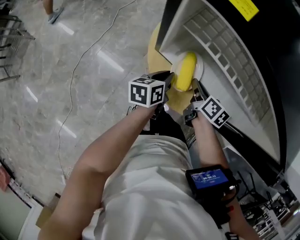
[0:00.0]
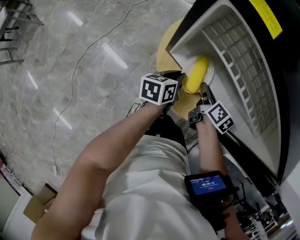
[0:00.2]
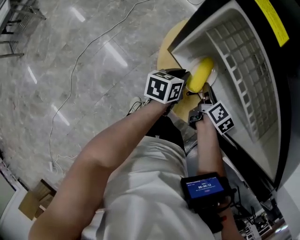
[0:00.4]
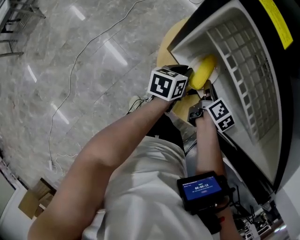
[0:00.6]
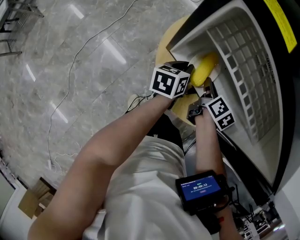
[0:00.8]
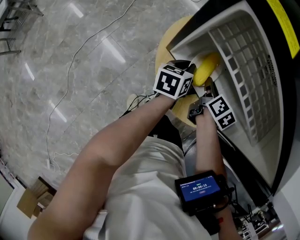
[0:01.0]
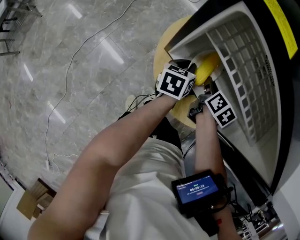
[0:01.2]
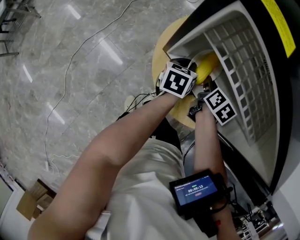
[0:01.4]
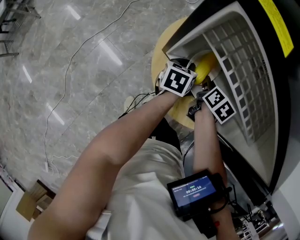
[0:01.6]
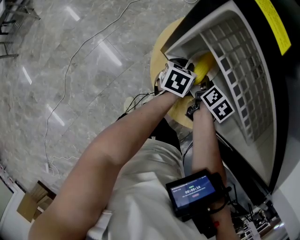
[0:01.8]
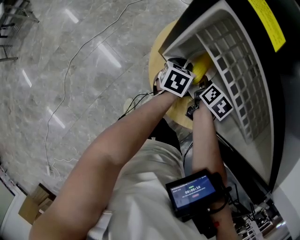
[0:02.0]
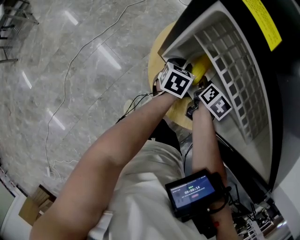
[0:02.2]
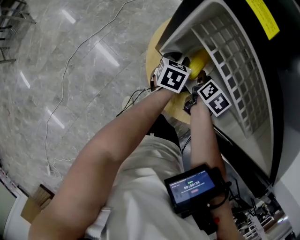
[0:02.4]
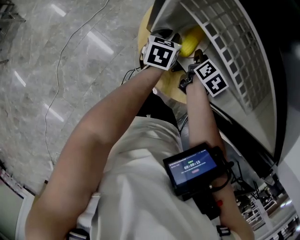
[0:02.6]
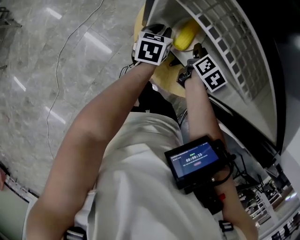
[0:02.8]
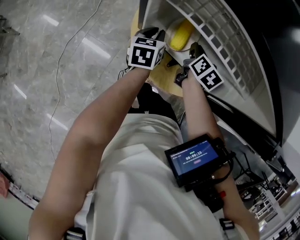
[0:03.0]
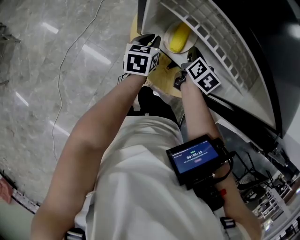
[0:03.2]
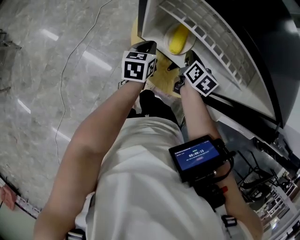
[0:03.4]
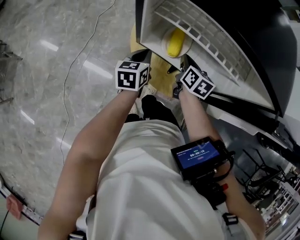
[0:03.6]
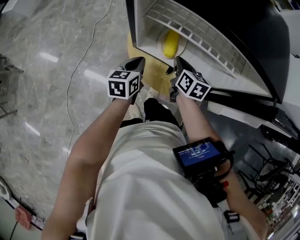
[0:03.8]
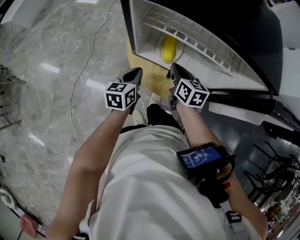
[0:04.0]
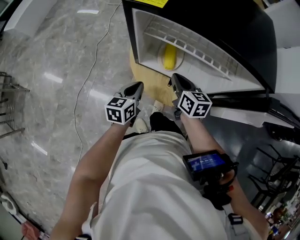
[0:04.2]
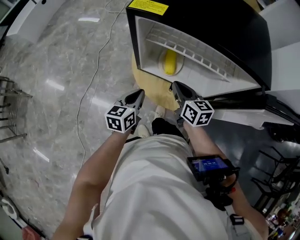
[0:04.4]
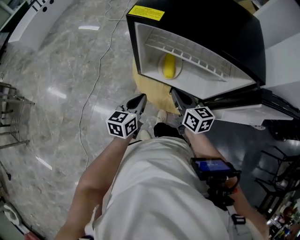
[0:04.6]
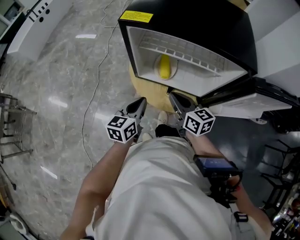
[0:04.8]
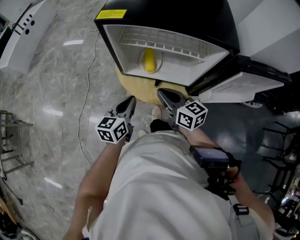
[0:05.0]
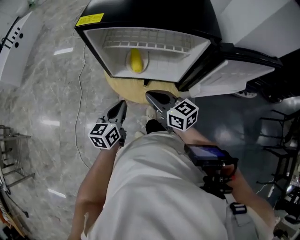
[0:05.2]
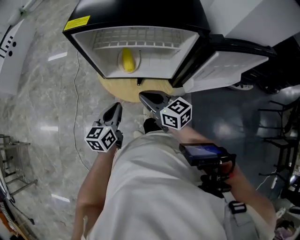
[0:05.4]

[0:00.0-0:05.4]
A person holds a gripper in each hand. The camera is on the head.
0.0 to 1.4 s: The two grippers go about 10 cm forward.
1.4 to 2.8 s: The grippers move only a little.
2.8 to 4.0 s: The left gripper heads backward and upward, covering about 15 cm; the right gripper shifts about 15 cm backward, upward and to the left, and closes its fingers.
4.0 to 5.4 s: The grippers both shift backward and upward by some 15 cm. The right gripper turns by roughly 20 degrees.

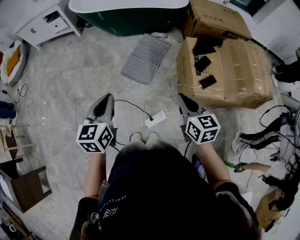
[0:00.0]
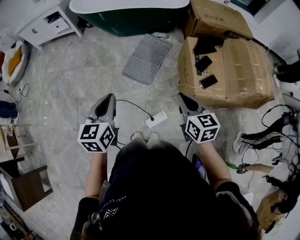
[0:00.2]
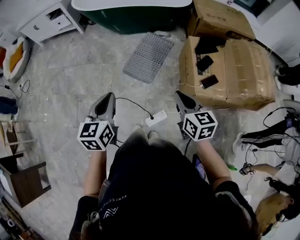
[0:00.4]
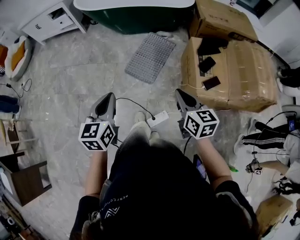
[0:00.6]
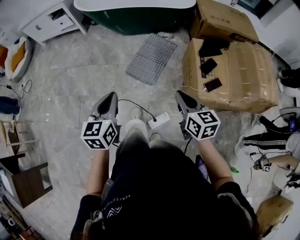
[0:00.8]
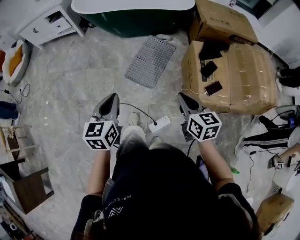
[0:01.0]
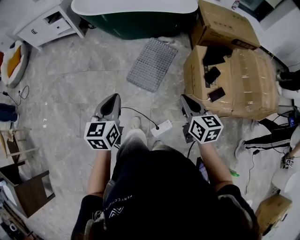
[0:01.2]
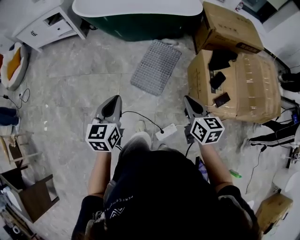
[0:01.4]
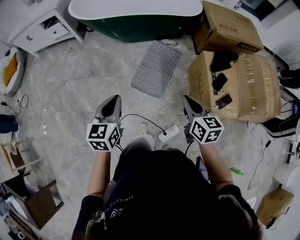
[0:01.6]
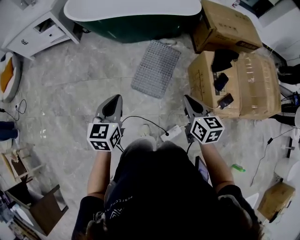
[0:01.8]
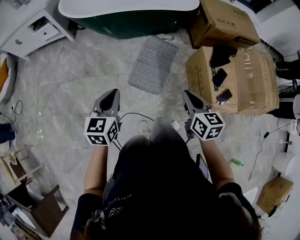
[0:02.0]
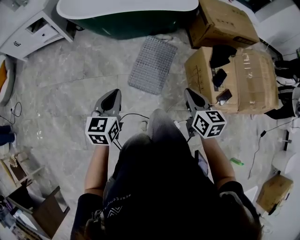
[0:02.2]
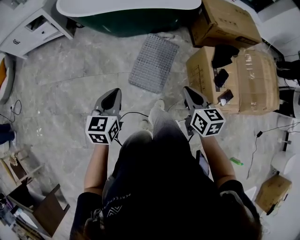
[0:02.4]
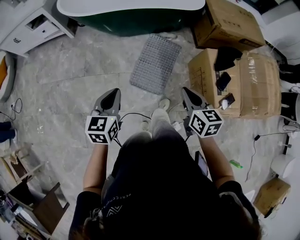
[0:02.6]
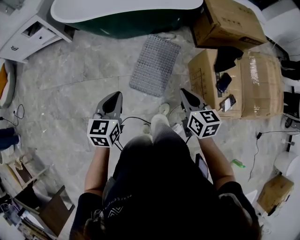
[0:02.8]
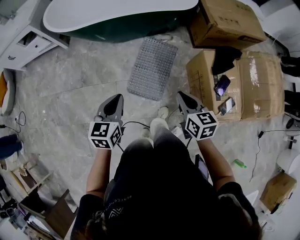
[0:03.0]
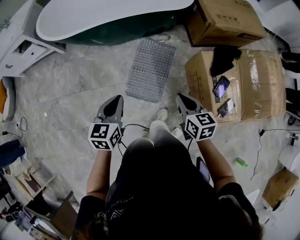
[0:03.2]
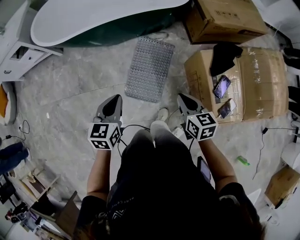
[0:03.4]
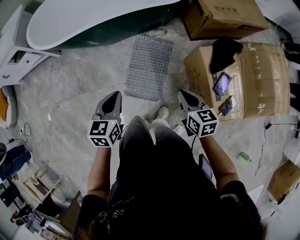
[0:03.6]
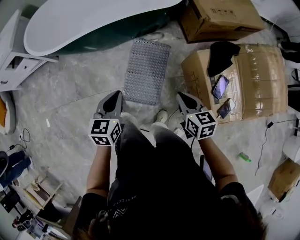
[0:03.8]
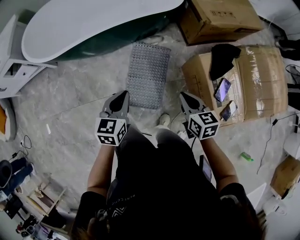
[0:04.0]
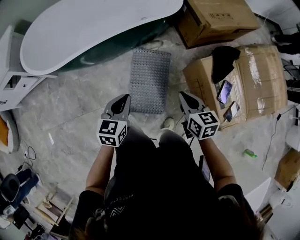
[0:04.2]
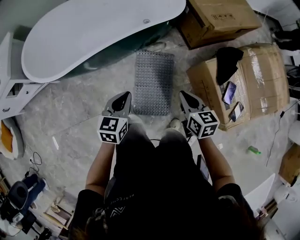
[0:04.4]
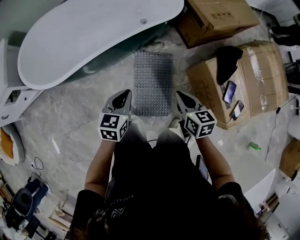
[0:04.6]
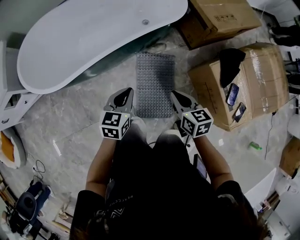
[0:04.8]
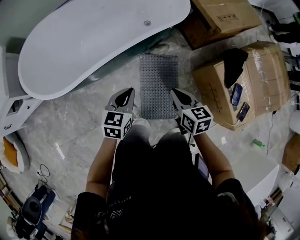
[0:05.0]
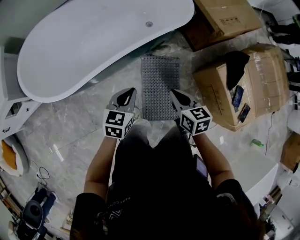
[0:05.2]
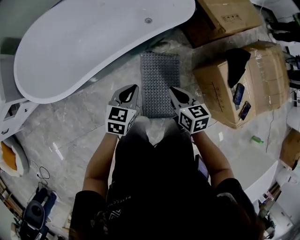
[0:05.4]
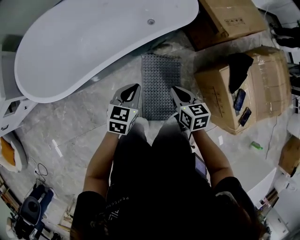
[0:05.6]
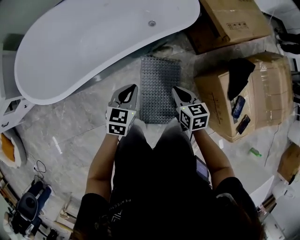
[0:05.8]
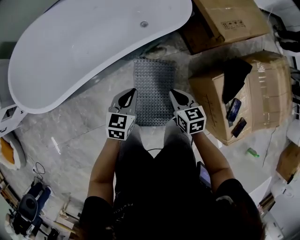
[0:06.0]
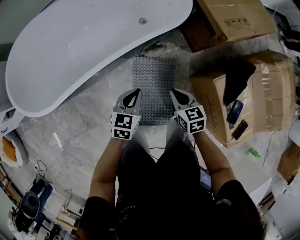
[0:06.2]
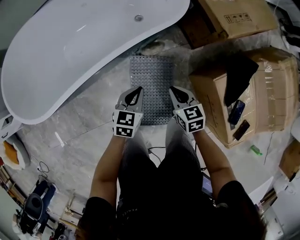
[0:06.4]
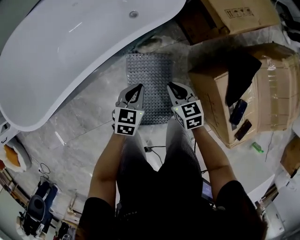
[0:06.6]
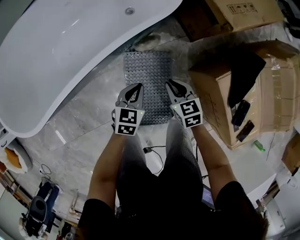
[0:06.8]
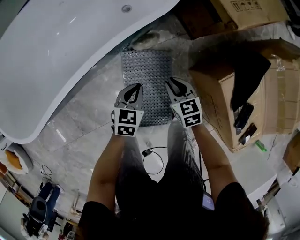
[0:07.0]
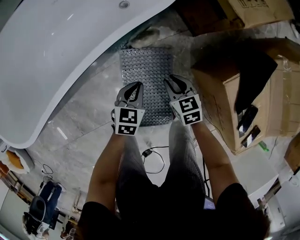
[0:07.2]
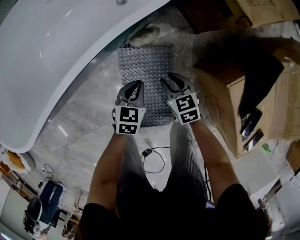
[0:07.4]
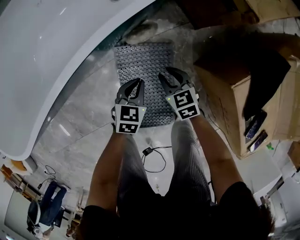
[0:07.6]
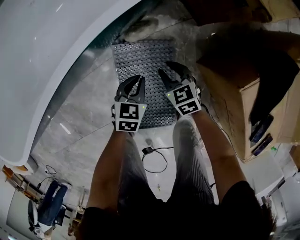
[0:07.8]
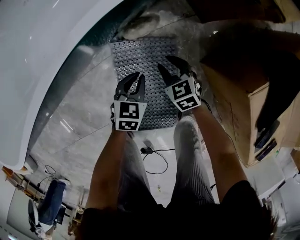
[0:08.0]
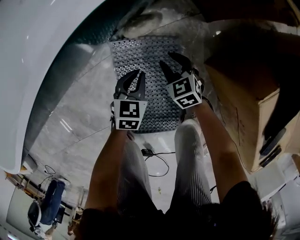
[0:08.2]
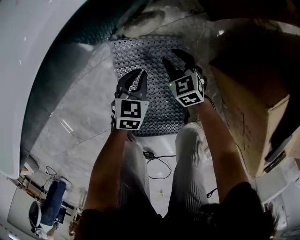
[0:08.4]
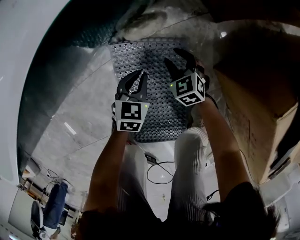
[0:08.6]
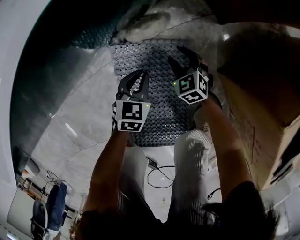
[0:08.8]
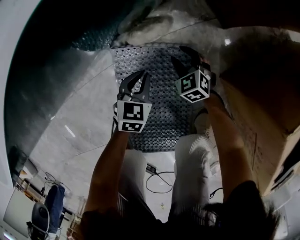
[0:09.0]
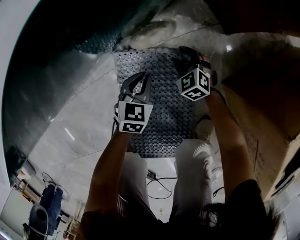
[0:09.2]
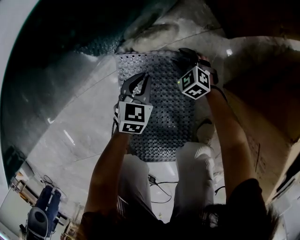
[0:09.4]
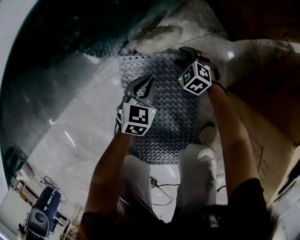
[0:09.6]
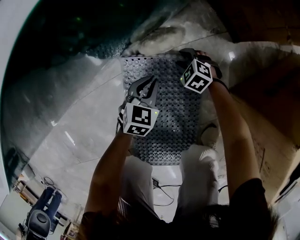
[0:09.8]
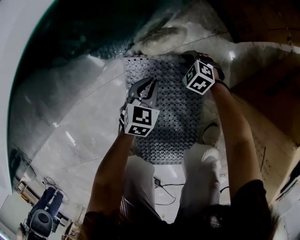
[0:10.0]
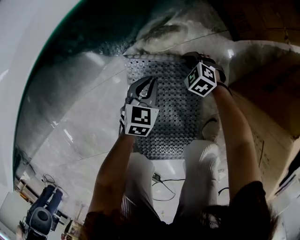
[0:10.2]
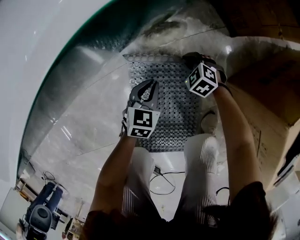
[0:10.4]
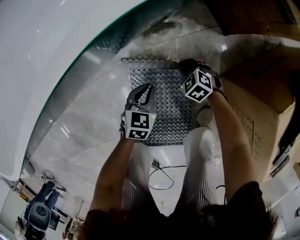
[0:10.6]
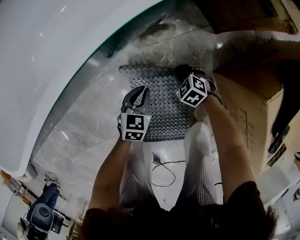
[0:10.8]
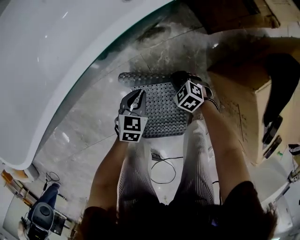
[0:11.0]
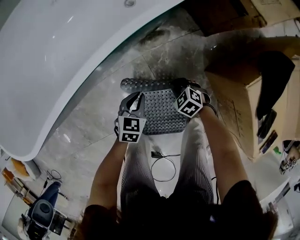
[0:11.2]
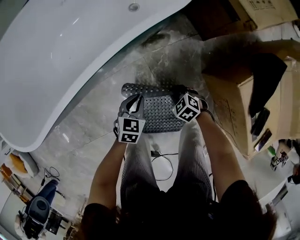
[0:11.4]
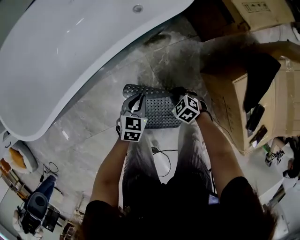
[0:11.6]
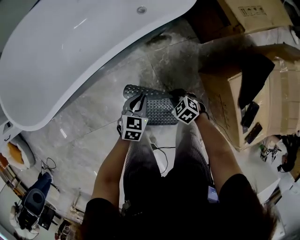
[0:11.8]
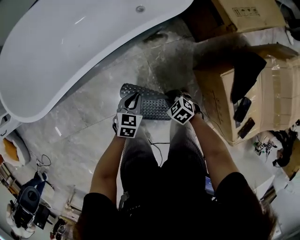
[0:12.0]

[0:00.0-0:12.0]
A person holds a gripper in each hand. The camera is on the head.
0.0 to 1.6 s: The grippers both shift forward and to the left by roughly 20 cm.
1.6 to 3.0 s: The grippers both shift forward by roughly 15 cm.
3.0 to 4.4 s: Both grippers travel together forward, roughly 20 cm. The left gripper swivels roughly 20 degrees.
4.4 to 6.0 s: The two grippers go roughly 20 cm forward and downward. The right gripper reaches roughly 15 cm to the left, then returns.
6.0 to 7.6 s: The left gripper shifts roughly 30 cm downward and to the right. The right gripper goes approximately 30 cm downward and forward, and opens up.
7.6 to 9.0 s: Both grippers move downward, about 25 cm. The right gripper turns by some 30 degrees.
9.0 to 10.4 s: The right gripper swivels roughly 20 degrees, and closes up.
10.4 to 12.0 s: Both grippers travel together upward and backward, some 35 cm.

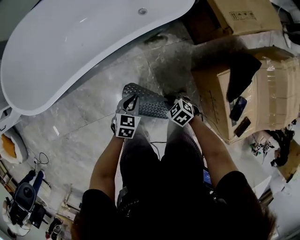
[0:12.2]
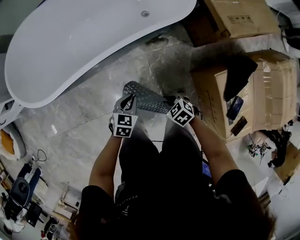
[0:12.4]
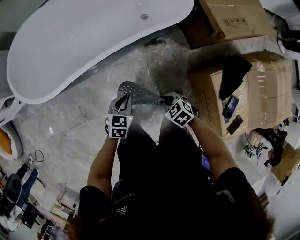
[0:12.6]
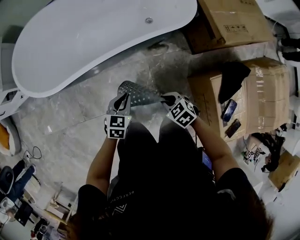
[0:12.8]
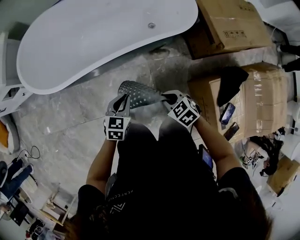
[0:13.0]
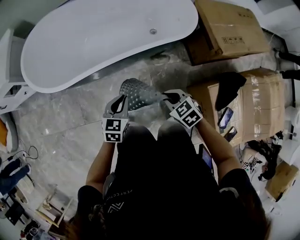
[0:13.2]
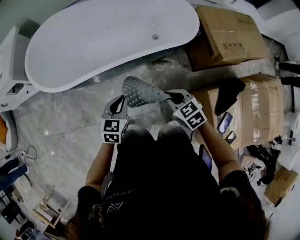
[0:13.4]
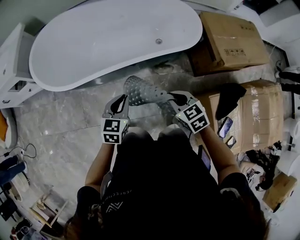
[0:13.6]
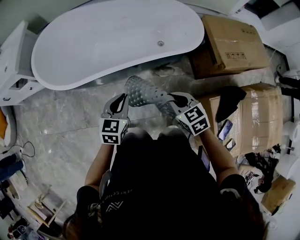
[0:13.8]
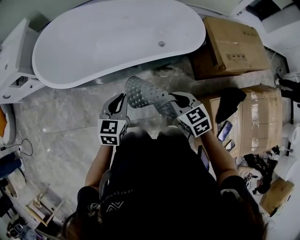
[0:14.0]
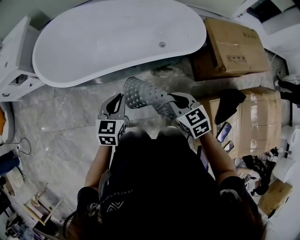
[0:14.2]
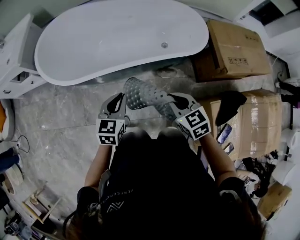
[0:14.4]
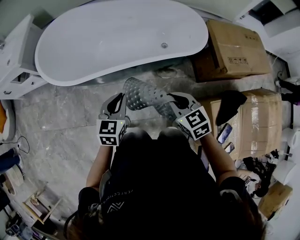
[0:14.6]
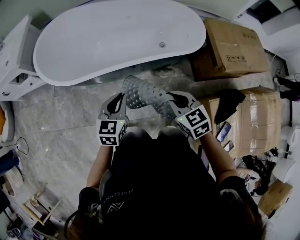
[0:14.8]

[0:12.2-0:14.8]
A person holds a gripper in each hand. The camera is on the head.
12.2 to 13.4 s: The left gripper goes roughly 20 cm upward and to the left, and swivels roughly 20 degrees. Meanwhile the right gripper shifts roughly 25 cm upward.
13.4 to 14.8 s: Both grippers travel together upward, about 5 cm.

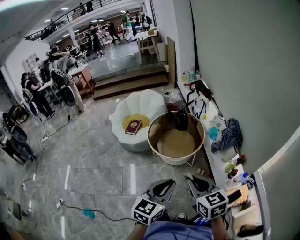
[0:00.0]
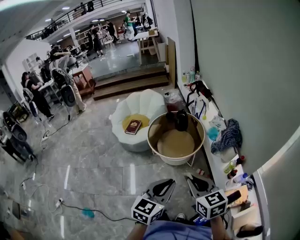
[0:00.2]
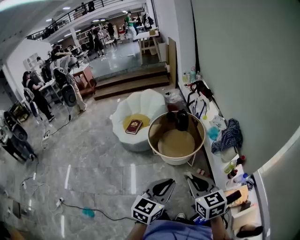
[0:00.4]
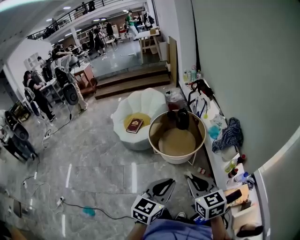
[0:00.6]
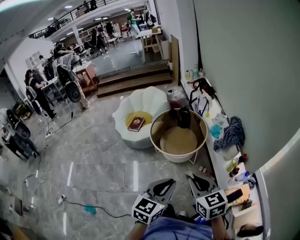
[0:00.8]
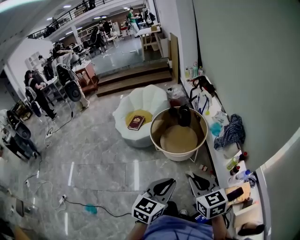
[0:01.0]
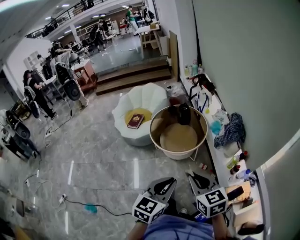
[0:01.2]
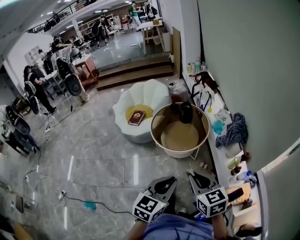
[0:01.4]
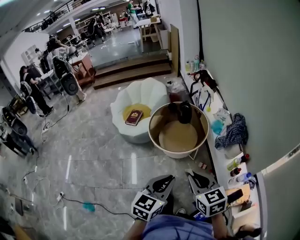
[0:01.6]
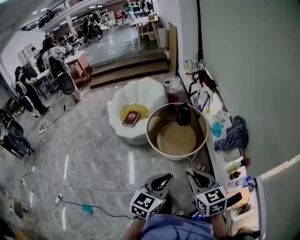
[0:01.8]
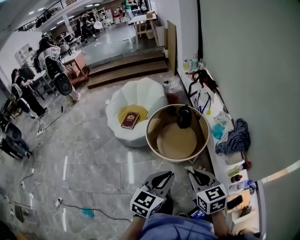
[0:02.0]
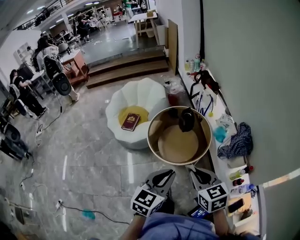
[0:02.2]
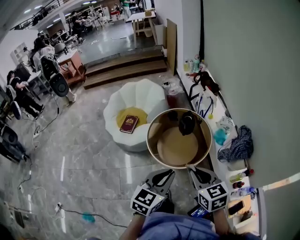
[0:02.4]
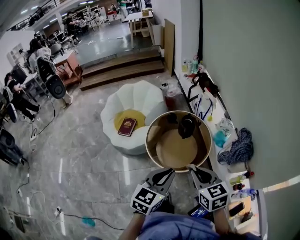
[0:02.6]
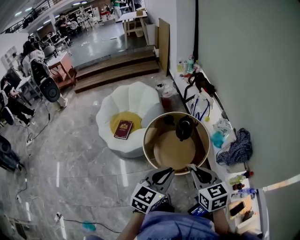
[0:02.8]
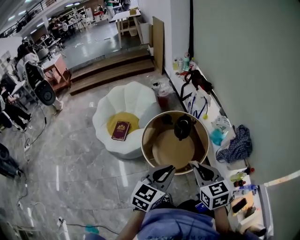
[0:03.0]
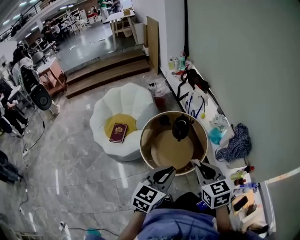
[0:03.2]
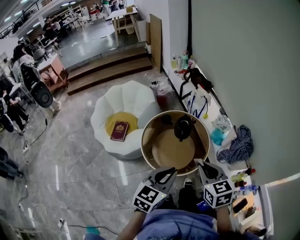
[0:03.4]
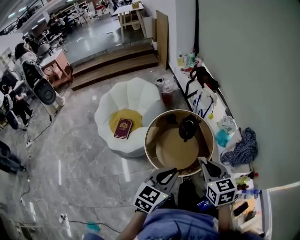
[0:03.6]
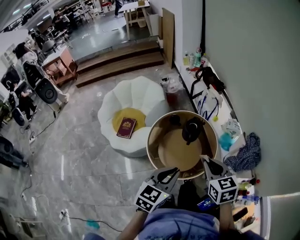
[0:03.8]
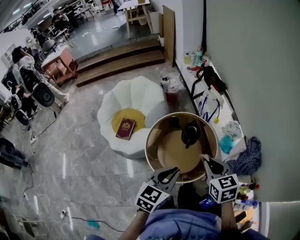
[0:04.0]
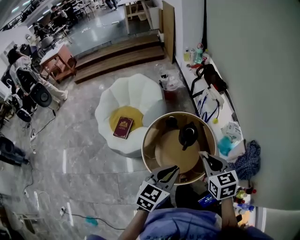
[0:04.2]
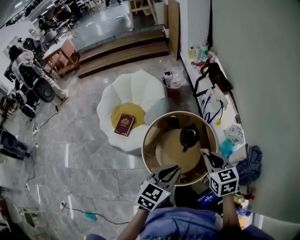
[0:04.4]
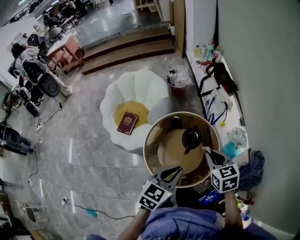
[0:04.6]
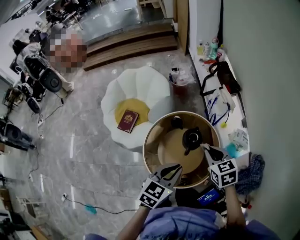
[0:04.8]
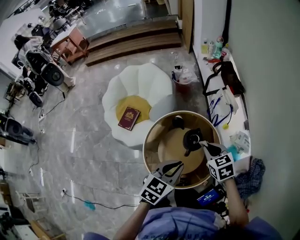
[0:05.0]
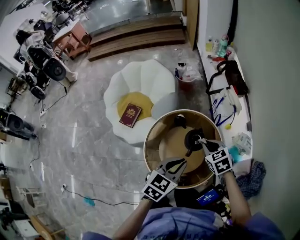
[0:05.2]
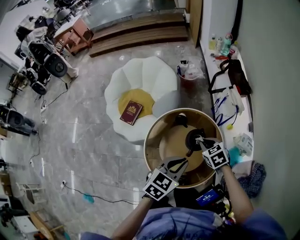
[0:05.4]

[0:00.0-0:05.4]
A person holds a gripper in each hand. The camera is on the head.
0.0 to 1.4 s: The grippers make only small movements.
1.4 to 2.8 s: Both grippers travel together forward, approximately 30 cm.
2.8 to 4.0 s: Both grippers travel together forward, about 15 cm.
4.0 to 5.4 s: The left gripper travels forward and downward by roughly 20 cm, while the right gripper shifts approximately 30 cm forward and downward, and swivels approximately 30 degrees.
